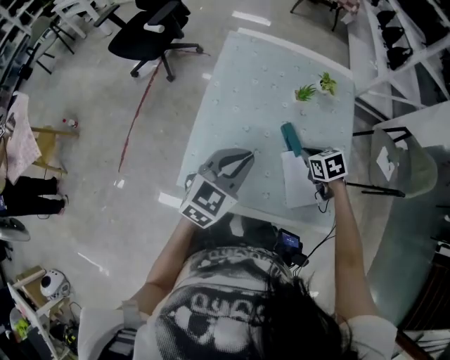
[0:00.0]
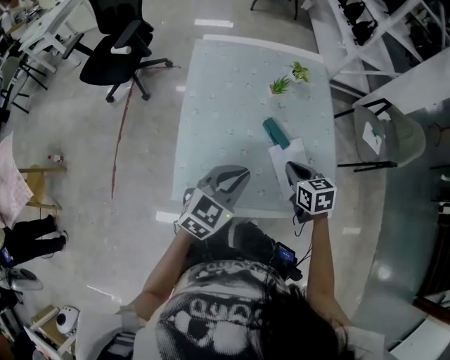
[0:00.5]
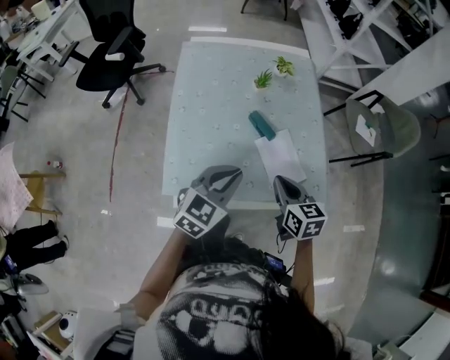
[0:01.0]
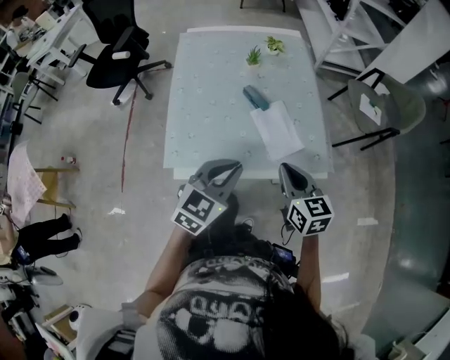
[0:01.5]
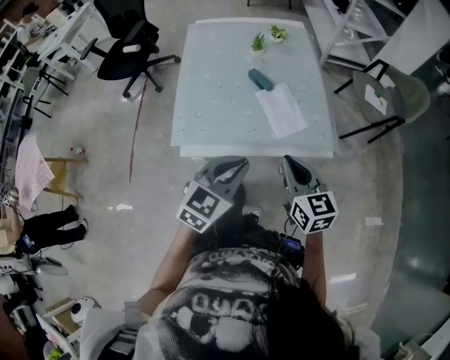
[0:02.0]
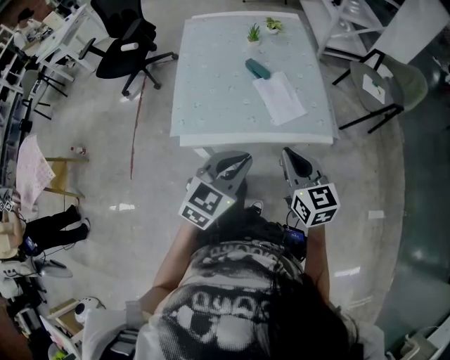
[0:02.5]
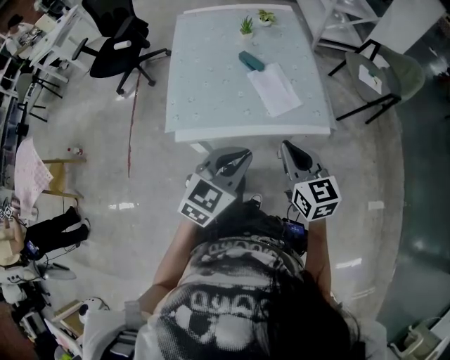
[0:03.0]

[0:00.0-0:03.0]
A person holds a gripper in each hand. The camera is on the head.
0:00.0 to 0:01.5: The left gripper heads backward and to the right, covering some 20 cm. Meanwhile the right gripper is displaced backward and upward by roughly 30 cm, and points its fingers approximately 40 degrees further upward.
0:01.5 to 0:03.0: The grippers both shift backward by about 10 cm.

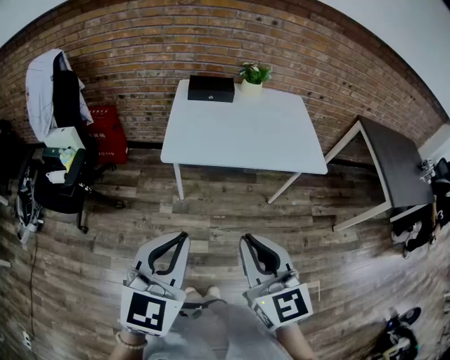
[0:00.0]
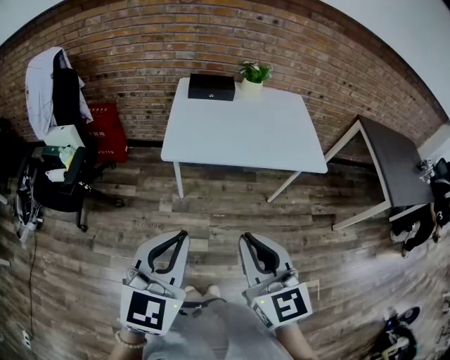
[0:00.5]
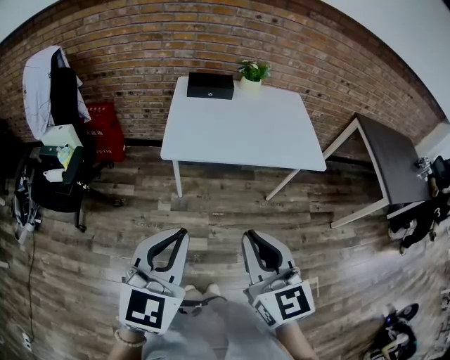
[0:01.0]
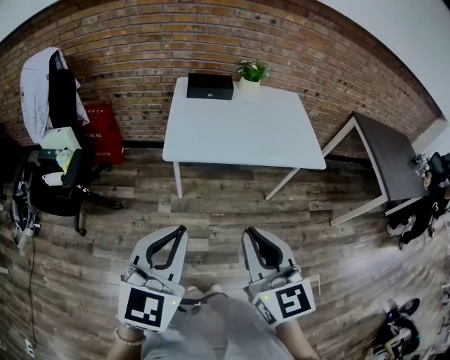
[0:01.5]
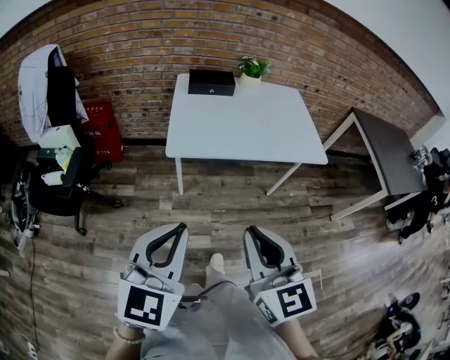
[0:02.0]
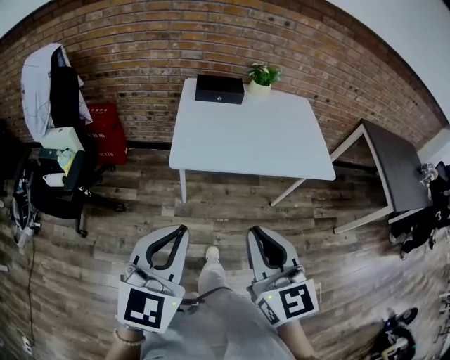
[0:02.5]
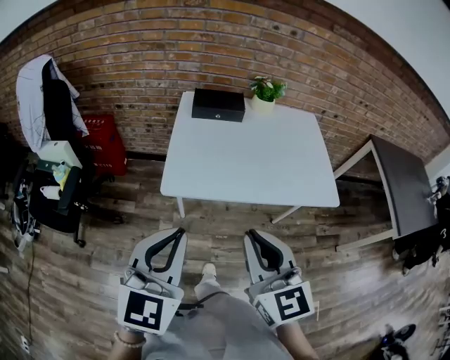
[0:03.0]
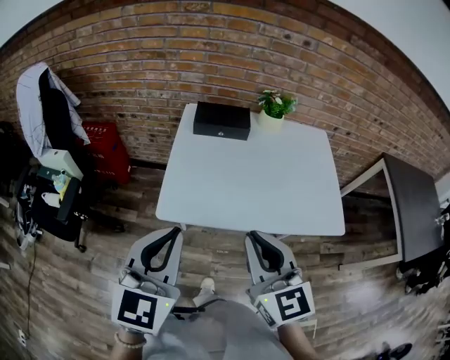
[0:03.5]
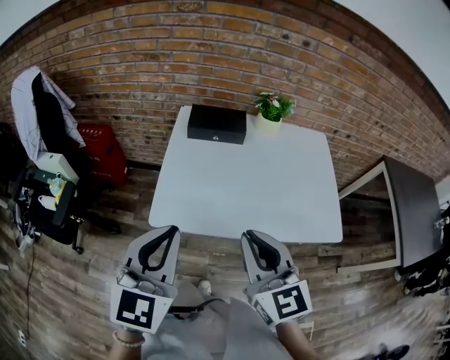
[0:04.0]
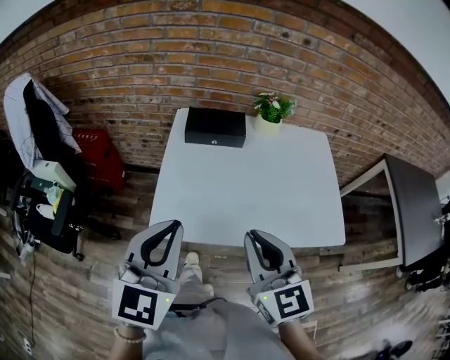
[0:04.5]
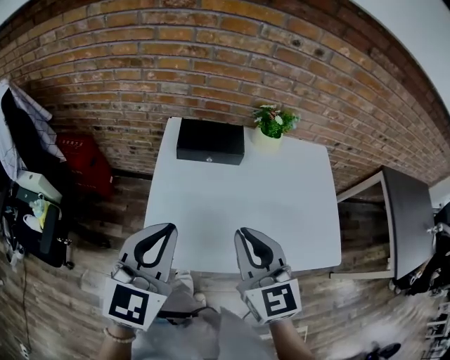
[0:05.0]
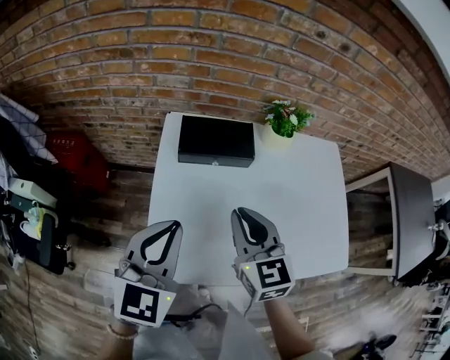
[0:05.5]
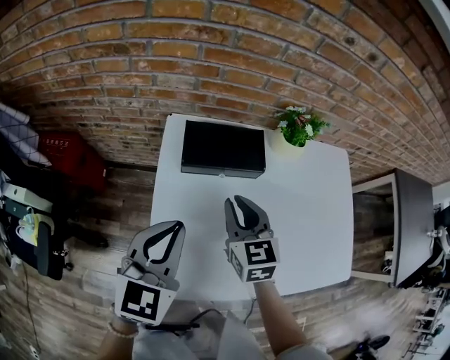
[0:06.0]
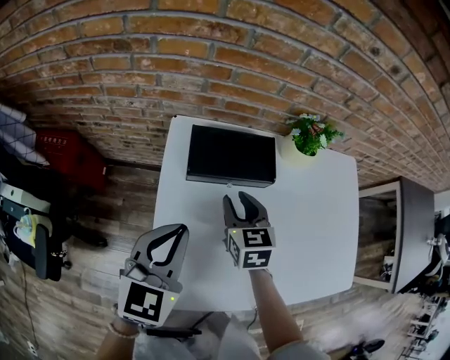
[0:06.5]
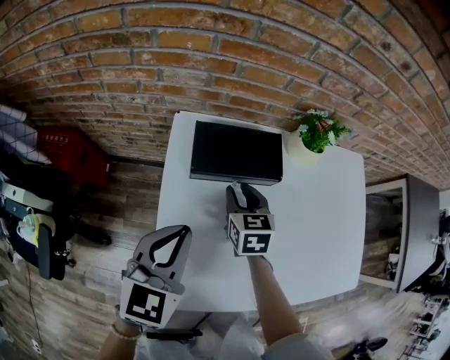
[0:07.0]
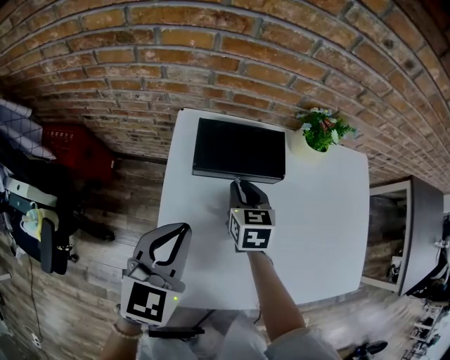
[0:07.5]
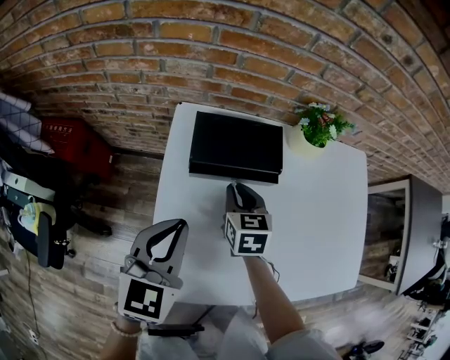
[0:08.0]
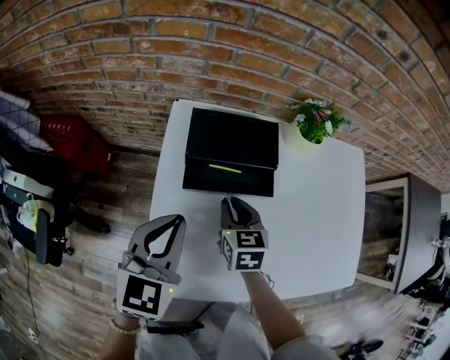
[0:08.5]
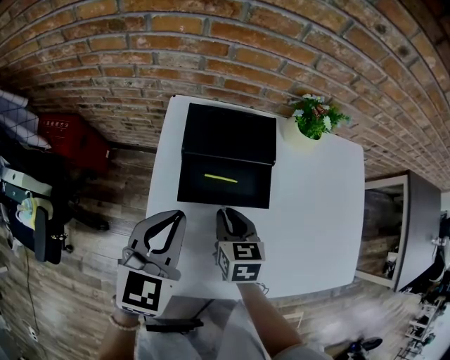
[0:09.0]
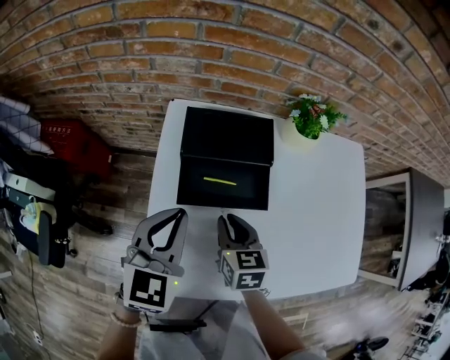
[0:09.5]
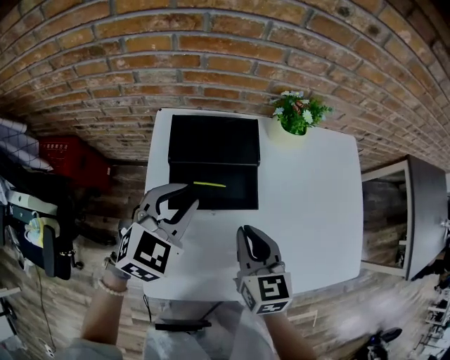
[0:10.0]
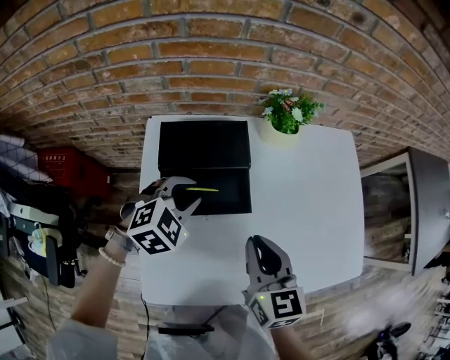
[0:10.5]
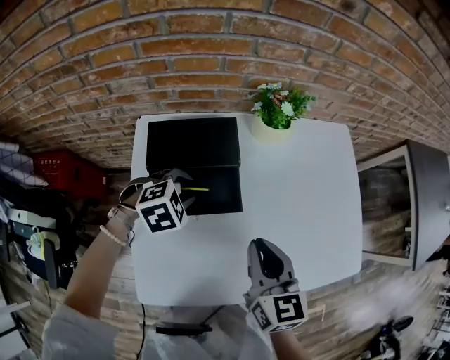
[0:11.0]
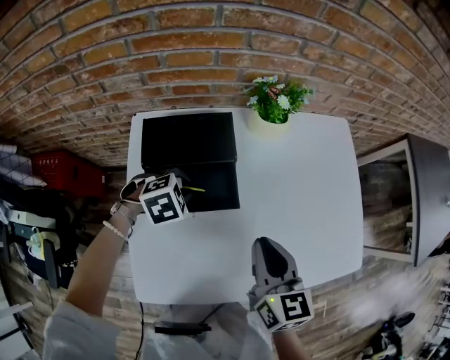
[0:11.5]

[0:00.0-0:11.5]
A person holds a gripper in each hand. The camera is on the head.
0:00.0 to 0:02.0: The two grippers go approximately 5 cm to the left.
0:02.0 to 0:04.0: The grippers both shift forward by some 35 cm.
0:04.0 to 0:06.0: The right gripper travels forward and downward by roughly 40 cm, and swivels about 20 degrees. The left gripper travels forward by roughly 35 cm.
0:06.0 to 0:07.5: The left gripper moves some 5 cm. The right gripper goes about 15 cm downward and forward.
0:07.5 to 0:09.5: The right gripper travels backward by about 15 cm.
0:09.5 to 0:11.5: The right gripper changes place by roughly 20 cm. The left gripper is displaced downward by about 15 cm, and tilts its fingers roughly 50 degrees downward.

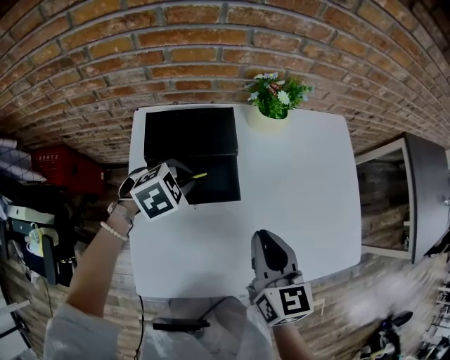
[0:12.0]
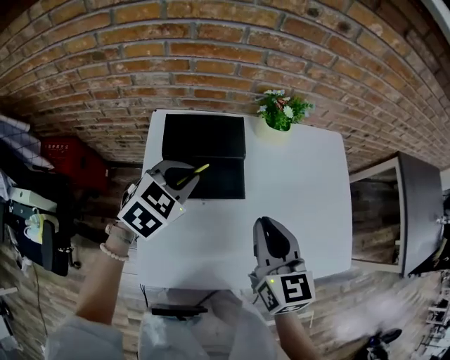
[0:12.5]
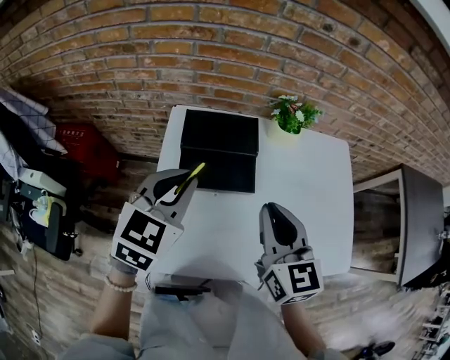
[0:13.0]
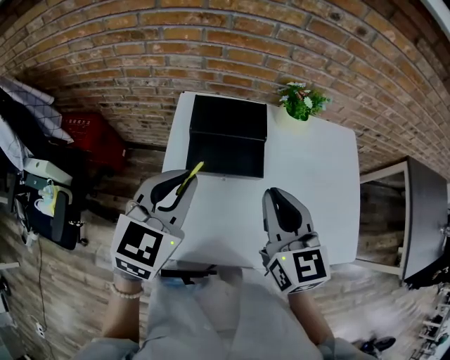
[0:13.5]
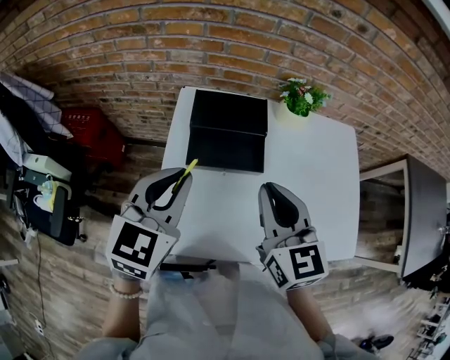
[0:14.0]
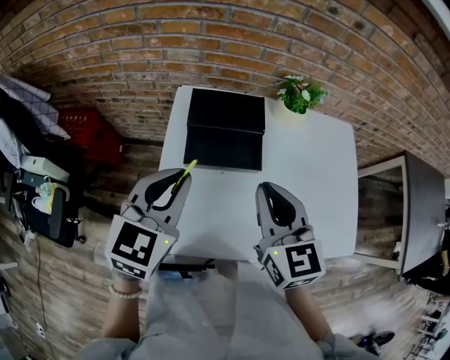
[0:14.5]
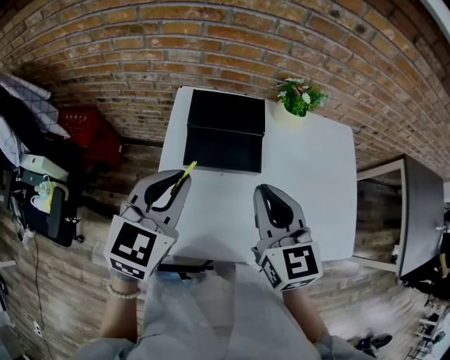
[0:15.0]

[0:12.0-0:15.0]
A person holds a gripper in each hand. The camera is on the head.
0:12.0 to 0:13.5: The left gripper goes roughly 30 cm upward and backward, and angles its fingers upward, by about 40 degrees. The right gripper moves upward and to the left, about 15 cm, and rotates some 20 degrees.
0:13.5 to 0:15.0: There are only small adjustments of the grippers.

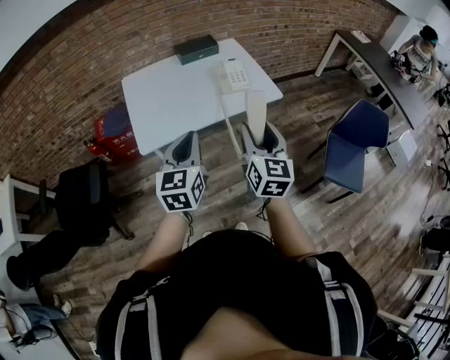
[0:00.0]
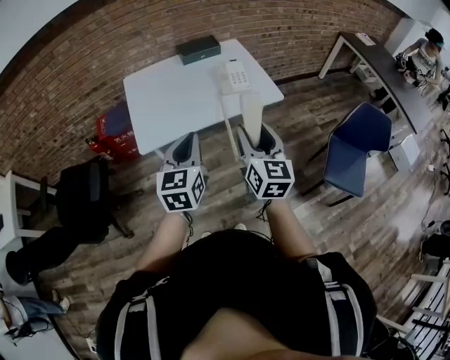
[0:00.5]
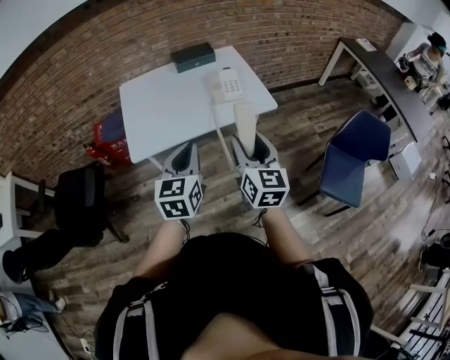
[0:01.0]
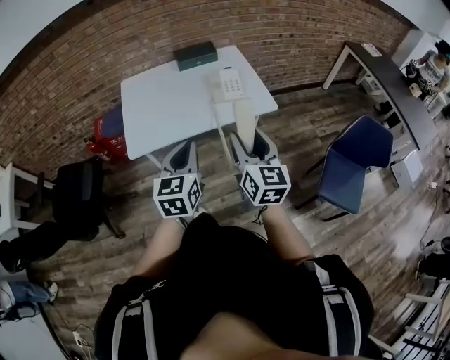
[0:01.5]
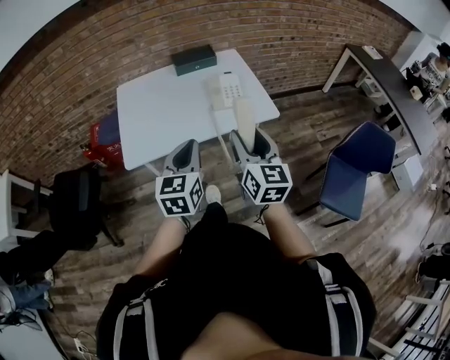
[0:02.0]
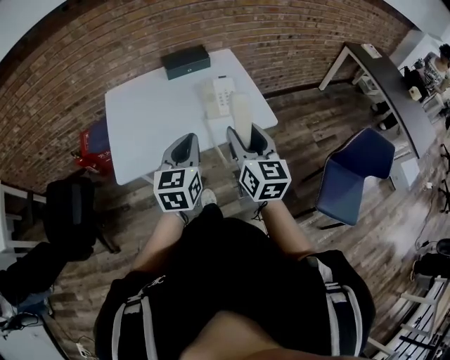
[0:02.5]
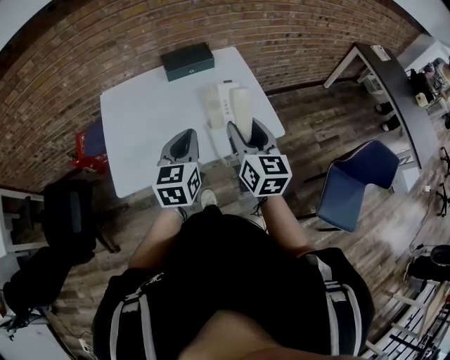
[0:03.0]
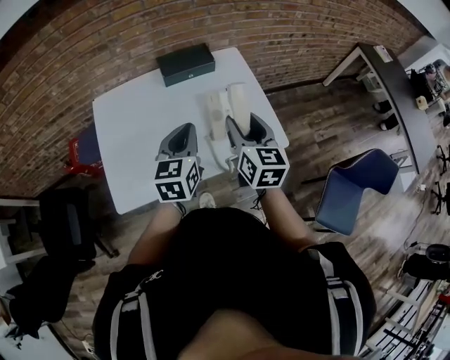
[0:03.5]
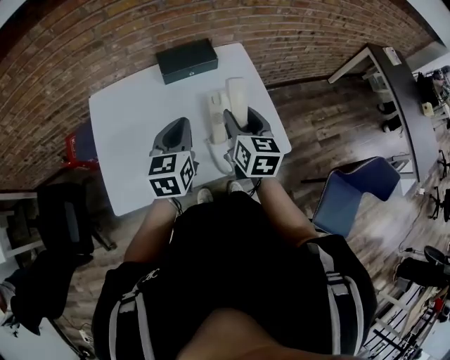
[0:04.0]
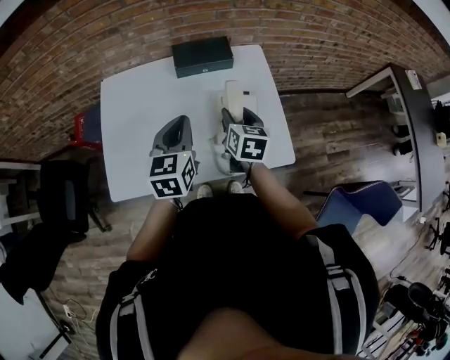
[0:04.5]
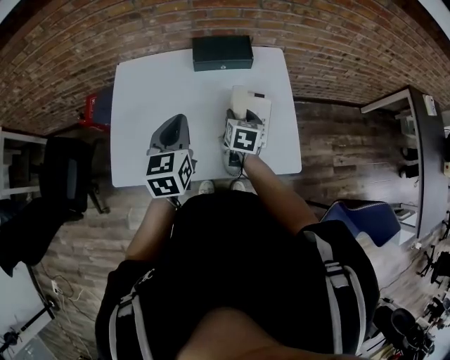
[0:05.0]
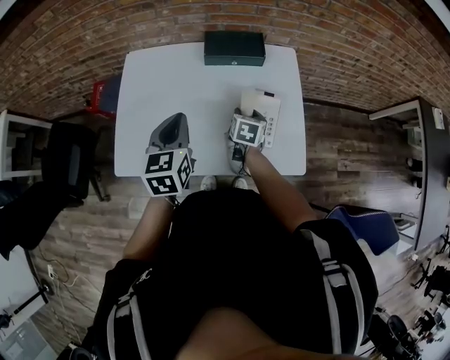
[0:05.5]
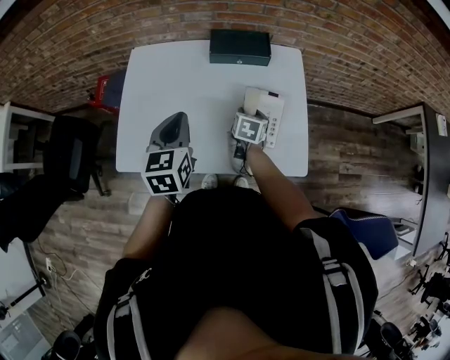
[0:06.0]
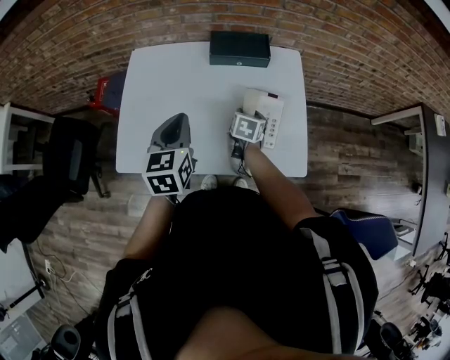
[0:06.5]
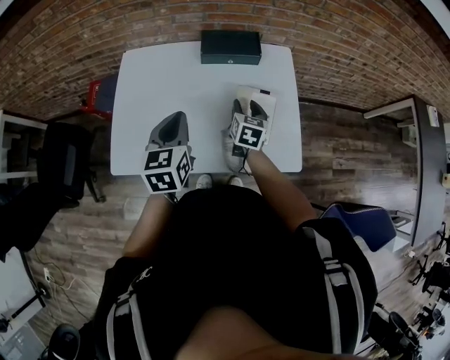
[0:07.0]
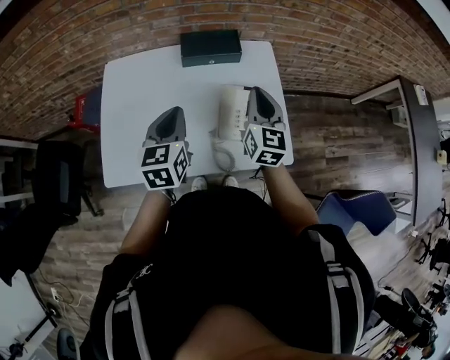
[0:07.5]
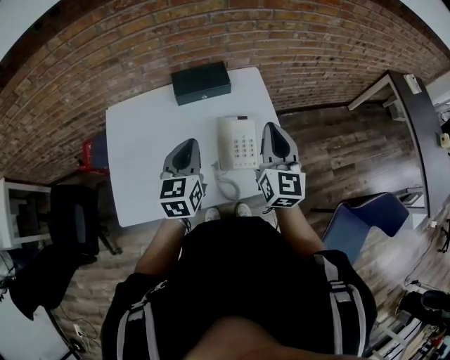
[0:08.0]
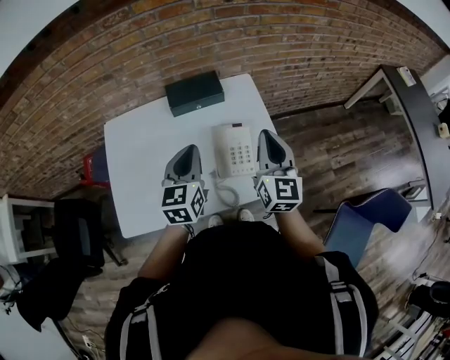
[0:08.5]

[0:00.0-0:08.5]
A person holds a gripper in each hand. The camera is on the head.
0:00.0 to 0:02.0: The right gripper is displaced forward and to the right by about 10 cm. The left gripper goes some 10 cm to the right and forward.
0:02.0 to 0:04.0: The grippers both shift forward by about 35 cm.
0:04.0 to 0:06.5: The right gripper shifts approximately 20 cm downward, and turns by roughly 30 degrees, while the left gripper heads to the left, covering some 5 cm, and swivels about 20 degrees.
0:06.5 to 0:08.5: The right gripper goes approximately 30 cm upward and to the right, angles its fingers upward, by roughly 50 degrees, and closes; the left gripper moves to the right, about 10 cm.
